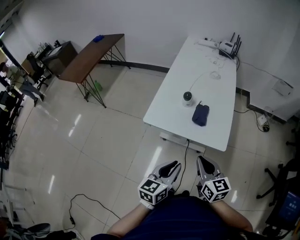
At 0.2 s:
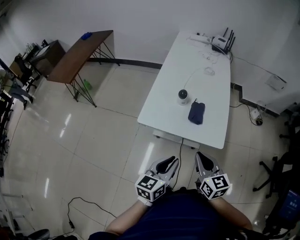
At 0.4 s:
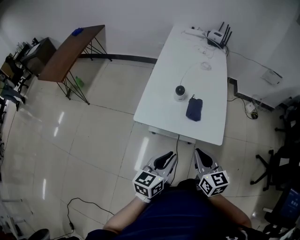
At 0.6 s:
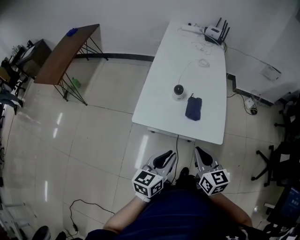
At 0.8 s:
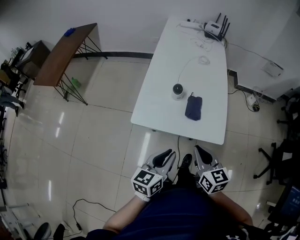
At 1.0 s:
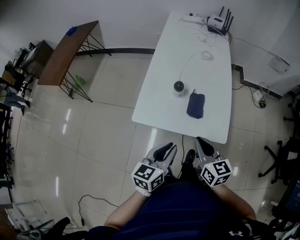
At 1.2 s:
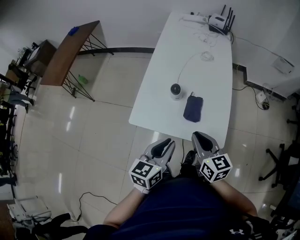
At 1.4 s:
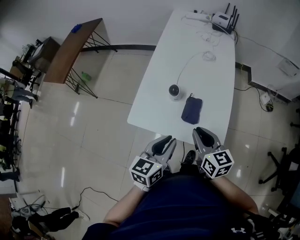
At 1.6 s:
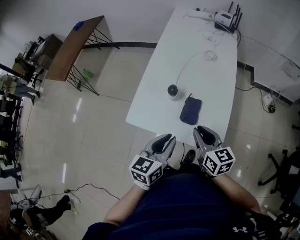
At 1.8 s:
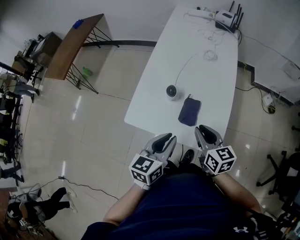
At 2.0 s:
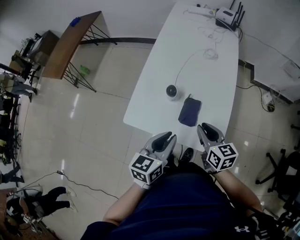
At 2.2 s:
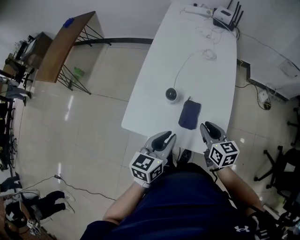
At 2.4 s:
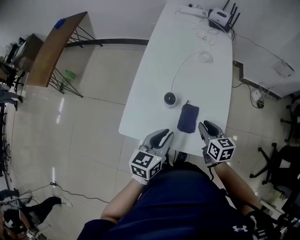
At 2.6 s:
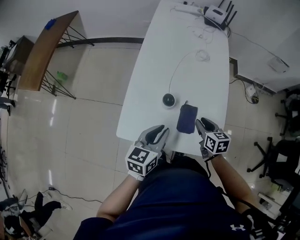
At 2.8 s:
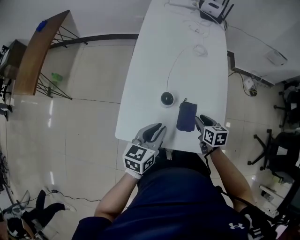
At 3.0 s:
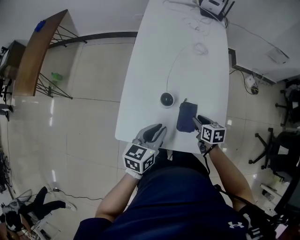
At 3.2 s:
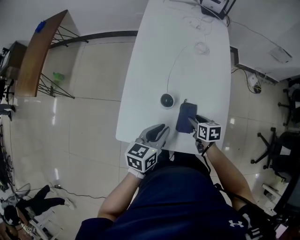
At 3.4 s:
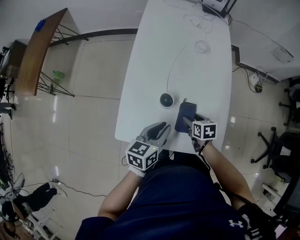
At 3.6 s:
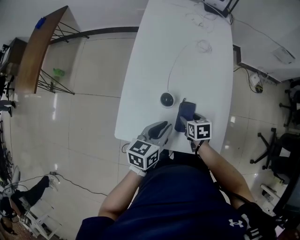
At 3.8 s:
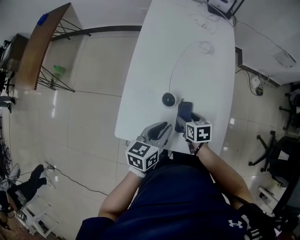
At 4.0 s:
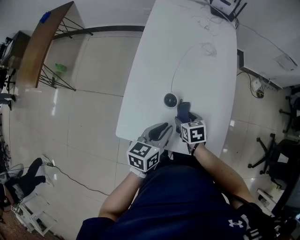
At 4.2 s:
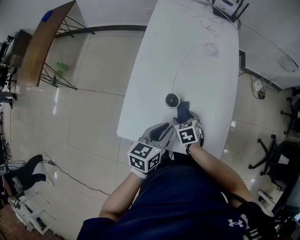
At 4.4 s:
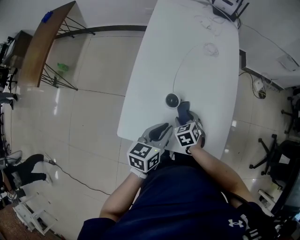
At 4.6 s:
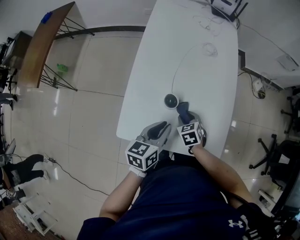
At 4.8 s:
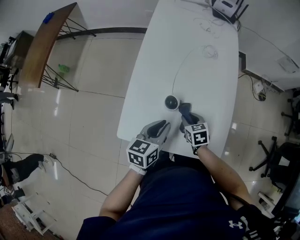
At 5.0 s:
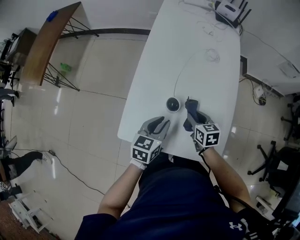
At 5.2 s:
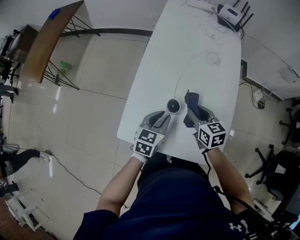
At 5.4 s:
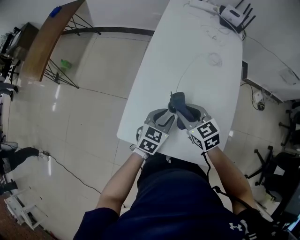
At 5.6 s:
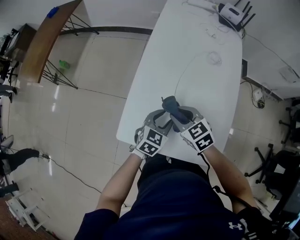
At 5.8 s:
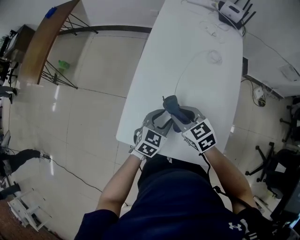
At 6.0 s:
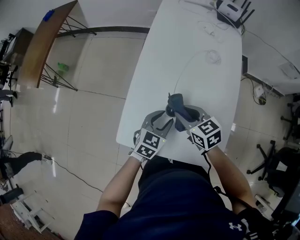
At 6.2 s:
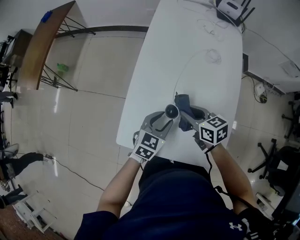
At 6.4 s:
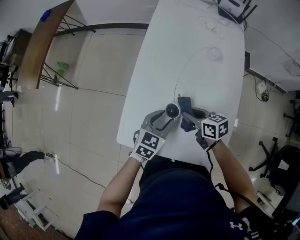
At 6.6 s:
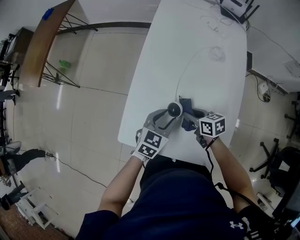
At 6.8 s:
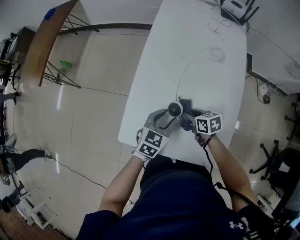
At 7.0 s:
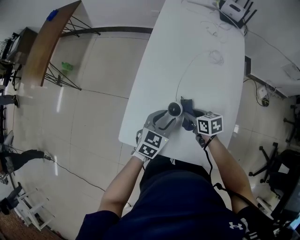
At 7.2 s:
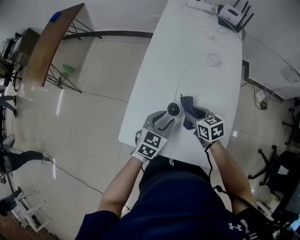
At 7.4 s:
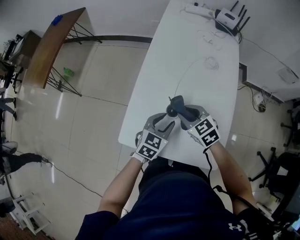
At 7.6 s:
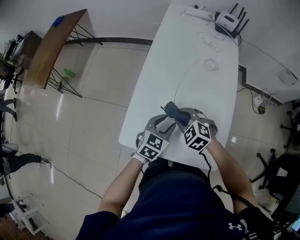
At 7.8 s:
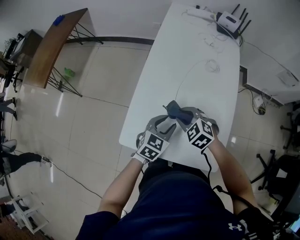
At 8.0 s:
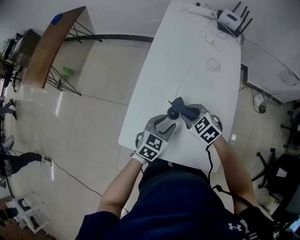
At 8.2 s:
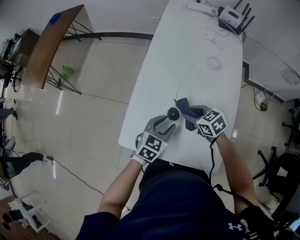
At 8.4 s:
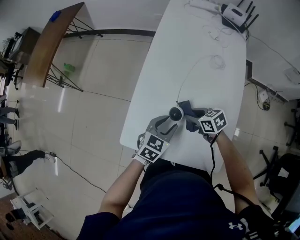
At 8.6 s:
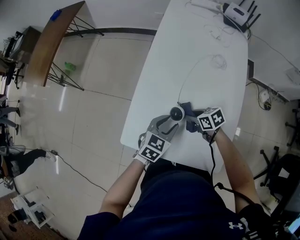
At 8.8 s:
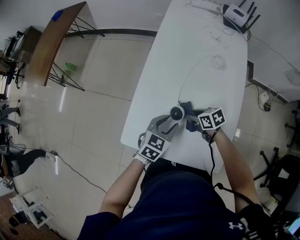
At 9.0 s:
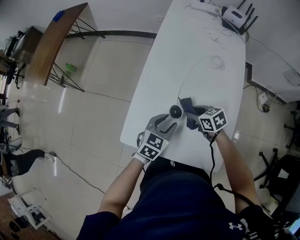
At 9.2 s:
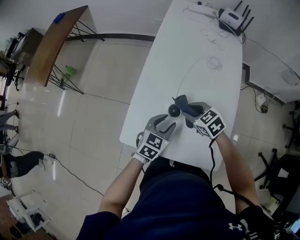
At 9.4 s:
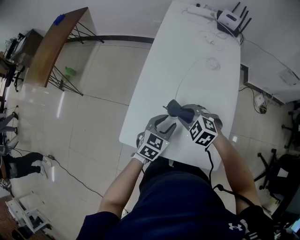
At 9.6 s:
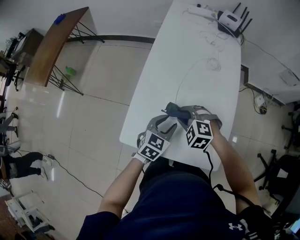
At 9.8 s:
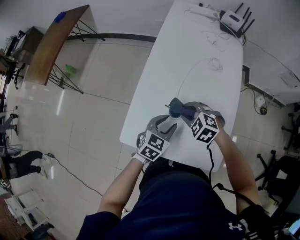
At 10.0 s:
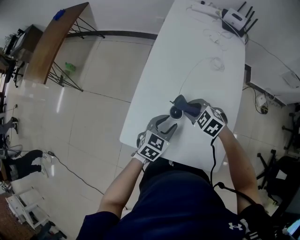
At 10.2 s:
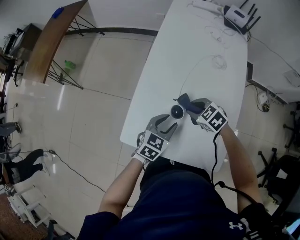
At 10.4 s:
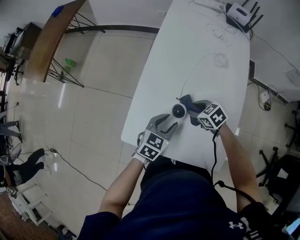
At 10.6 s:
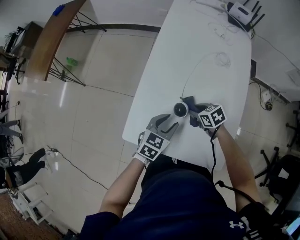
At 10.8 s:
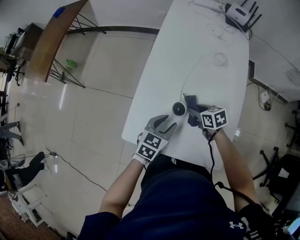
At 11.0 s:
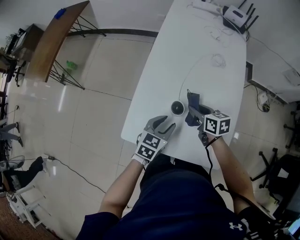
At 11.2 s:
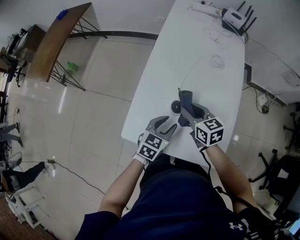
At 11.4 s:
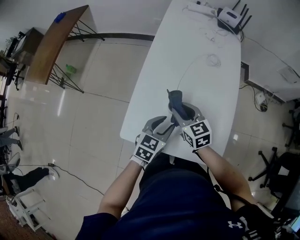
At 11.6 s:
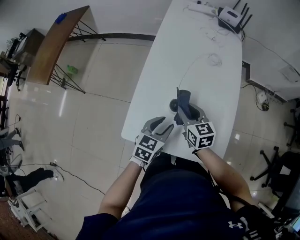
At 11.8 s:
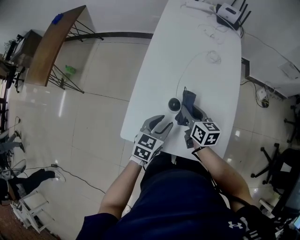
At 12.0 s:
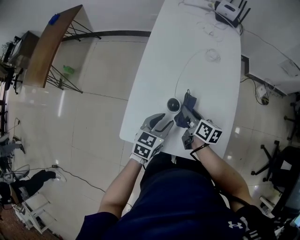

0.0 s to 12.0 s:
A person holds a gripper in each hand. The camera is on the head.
0.0 to 1.6 s: The grippers both shift forward by roughly 20 cm.
1.6 to 3.0 s: The left gripper is displaced forward, downward and to the left by some 15 cm. The right gripper moves downward and forward, about 20 cm, and tilts its fingers roughly 30 degrees downward.
3.0 to 4.4 s: The right gripper moves to the left, roughly 10 cm, rotates approximately 40 degrees, and opens up.
4.4 to 6.0 s: The right gripper moves upward and forward, roughly 15 cm, rotates approximately 40 degrees, and closes up, while the left gripper is displaced forward and downward by some 10 cm, changes its angle by approximately 30 degrees, and opens up.
6.0 to 7.6 s: The right gripper goes downward and returns, approximately 10 cm each way, and rotates around the line of its fingers by about 40 degrees, counterclockwise from behind.
7.6 to 9.0 s: The right gripper is displaced downward and to the right by about 10 cm, and rotates around the line of its fingers by approximately 50 degrees, clockwise from behind.
9.0 to 10.4 s: The right gripper moves some 5 cm upward and comes back.
10.4 to 12.0 s: The right gripper is displaced upward by approximately 5 cm, and turns by approximately 70 degrees.

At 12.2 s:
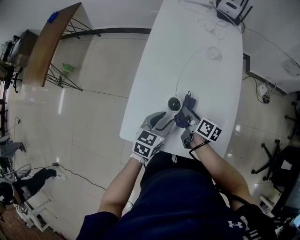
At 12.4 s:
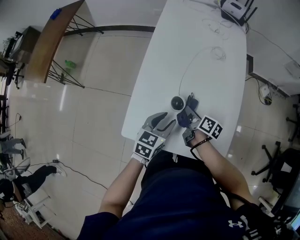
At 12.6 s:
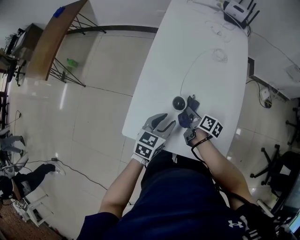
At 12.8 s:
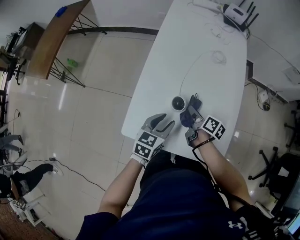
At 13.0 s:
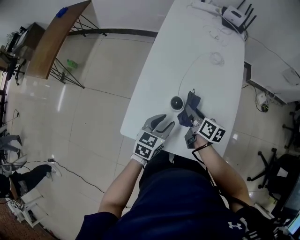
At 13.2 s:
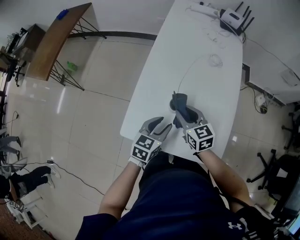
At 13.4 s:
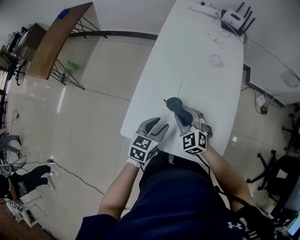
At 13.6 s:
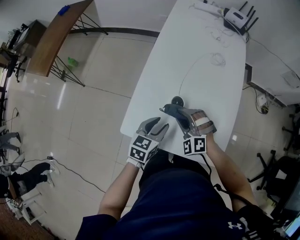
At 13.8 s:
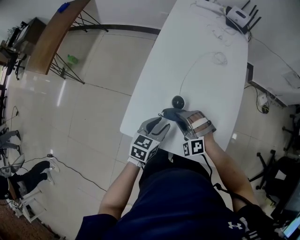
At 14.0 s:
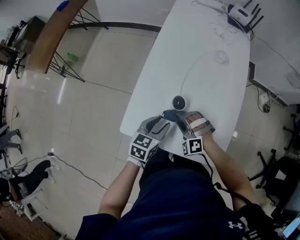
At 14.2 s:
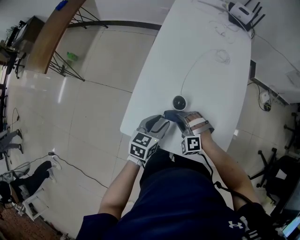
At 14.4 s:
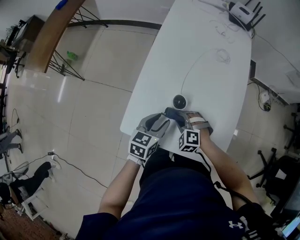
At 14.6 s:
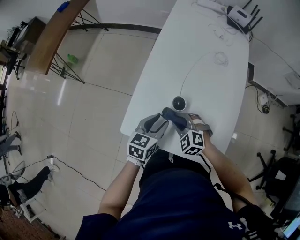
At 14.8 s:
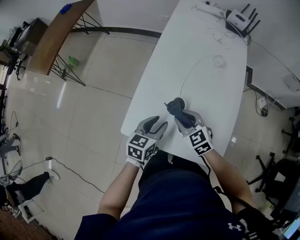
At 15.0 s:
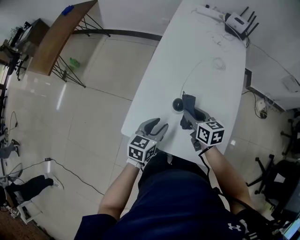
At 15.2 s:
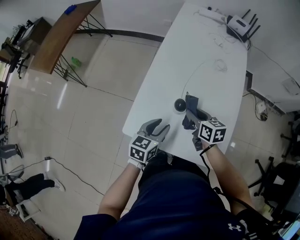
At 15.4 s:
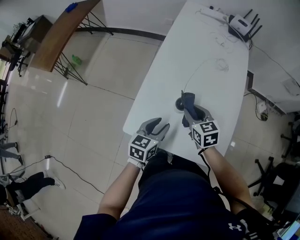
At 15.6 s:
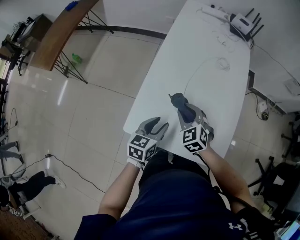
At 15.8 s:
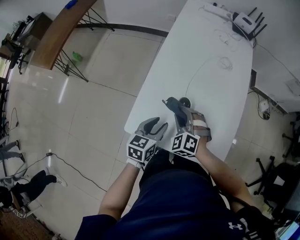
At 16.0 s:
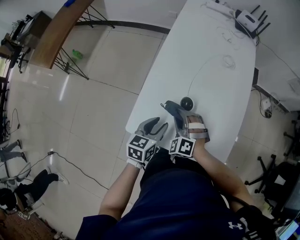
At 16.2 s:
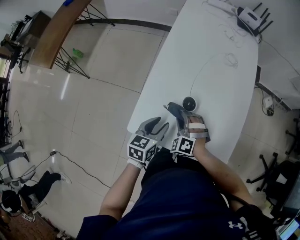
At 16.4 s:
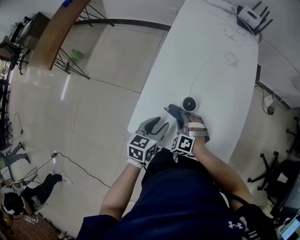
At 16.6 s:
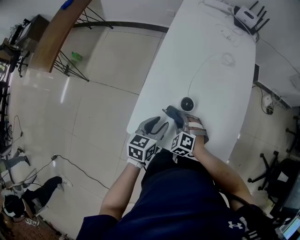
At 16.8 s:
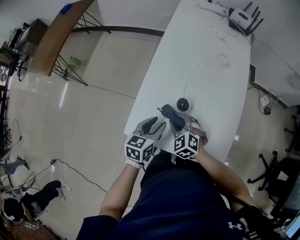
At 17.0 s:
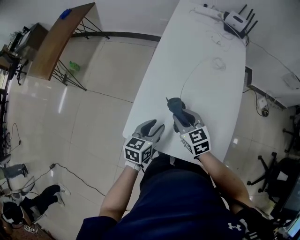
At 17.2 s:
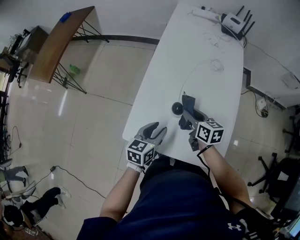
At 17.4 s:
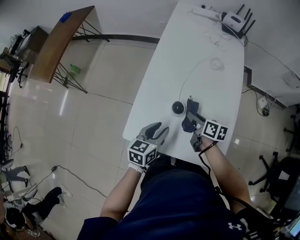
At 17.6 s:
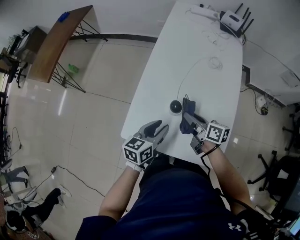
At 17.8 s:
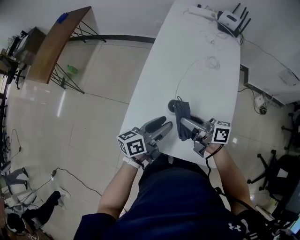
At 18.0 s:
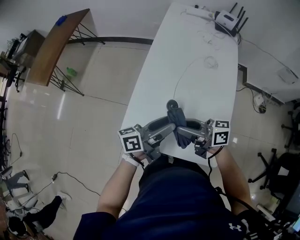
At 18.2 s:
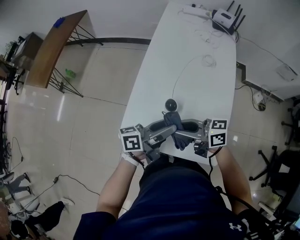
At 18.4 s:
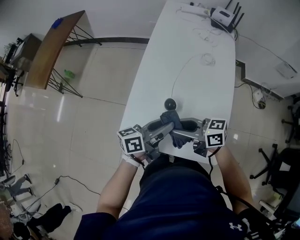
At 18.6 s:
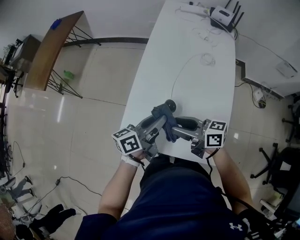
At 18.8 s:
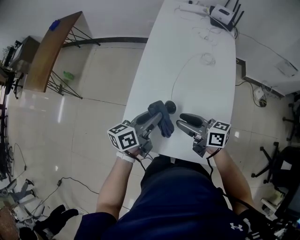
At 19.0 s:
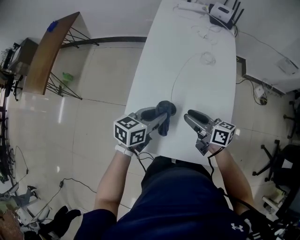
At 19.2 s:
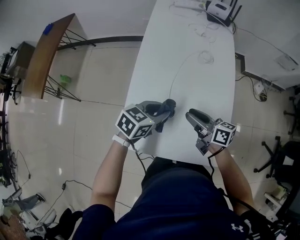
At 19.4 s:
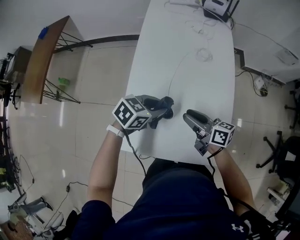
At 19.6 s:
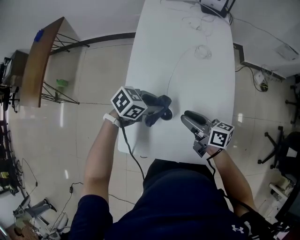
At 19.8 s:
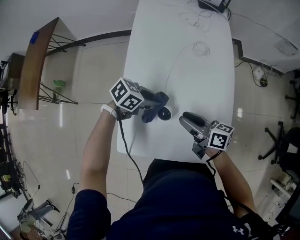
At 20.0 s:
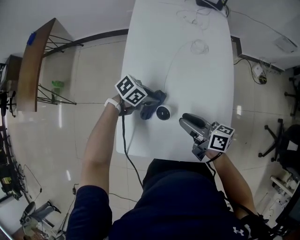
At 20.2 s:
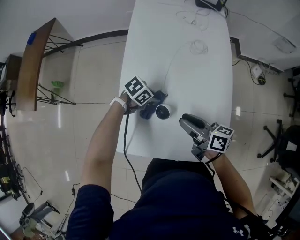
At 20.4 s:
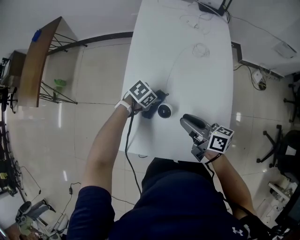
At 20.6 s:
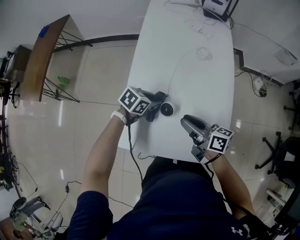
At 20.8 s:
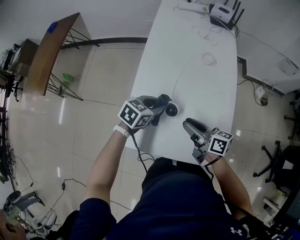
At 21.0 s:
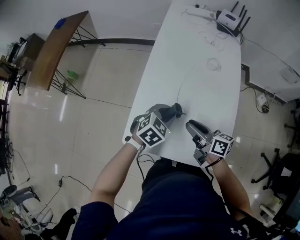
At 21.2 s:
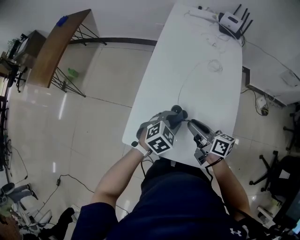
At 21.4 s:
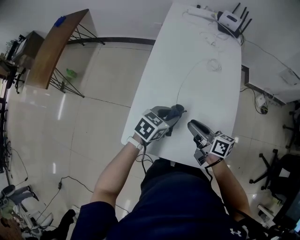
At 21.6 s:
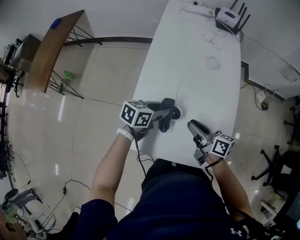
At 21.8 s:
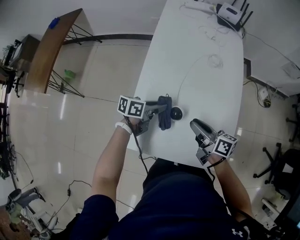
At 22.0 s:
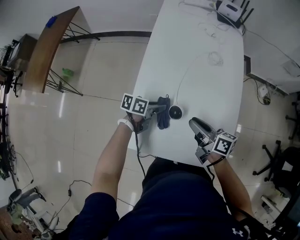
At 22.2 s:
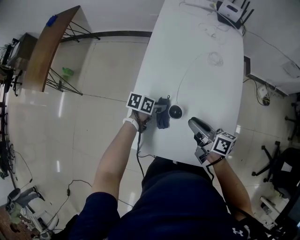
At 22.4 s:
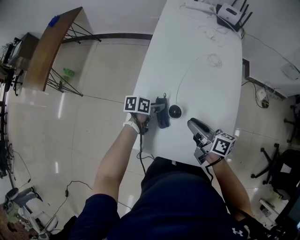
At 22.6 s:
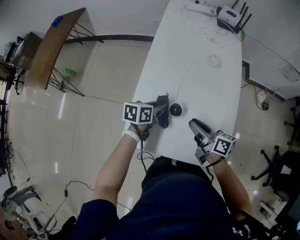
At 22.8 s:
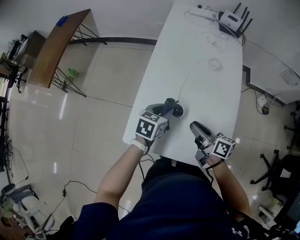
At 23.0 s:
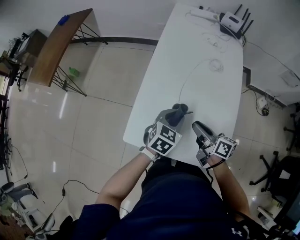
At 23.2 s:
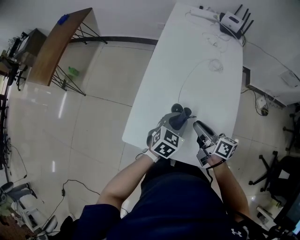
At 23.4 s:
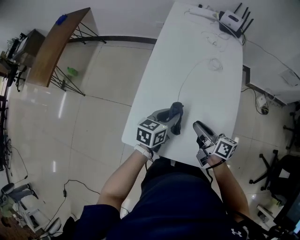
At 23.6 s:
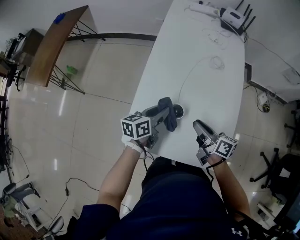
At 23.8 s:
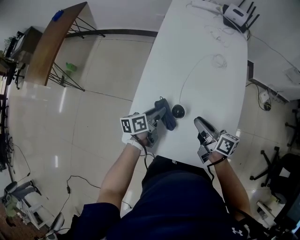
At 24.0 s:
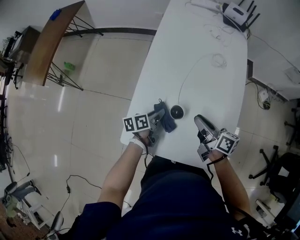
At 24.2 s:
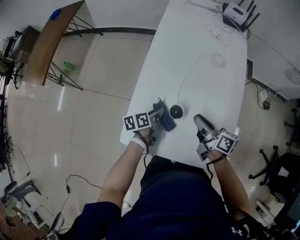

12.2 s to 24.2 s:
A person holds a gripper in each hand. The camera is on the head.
12.2 to 13.8 s: The right gripper goes up and down, roughly 15 cm each way, reversing 2 times, and rotates around the line of its fingers by approximately 130 degrees, counterclockwise from behind.
13.8 to 15.2 s: The right gripper shifts approximately 10 cm to the right and forward, goes downward and returns, about 5 cm each way, and twists about 100 degrees clockwise, seen from behind.
15.2 to 16.6 s: The right gripper goes approximately 15 cm to the left, downward and backward, and rolls counterclockwise, seen from behind, by approximately 70 degrees.
16.6 to 18.2 s: The right gripper moves up and down over roughly 20 cm, changing direction 2 times, and tilts its fingers some 50 degrees upward. Meanwhile the left gripper travels upward by roughly 15 cm, and tips its fingers upward by about 40 degrees.
18.2 to 19.8 s: The right gripper changes place by some 15 cm, and changes its angle by about 40 degrees; the left gripper travels downward by about 15 cm, angles its fingers downward, by about 40 degrees, and closes its fingers.
19.8 to 21.2 s: The left gripper travels downward and back again, about 10 cm each way, and changes its angle by about 40 degrees.
21.2 to 22.6 s: The left gripper shifts approximately 10 cm to the left, goes downward and returns, roughly 10 cm each way, and rotates around the line of its fingers by roughly 50 degrees, counterclockwise from behind.
22.6 to 24.2 s: The left gripper travels downward by roughly 5 cm, and rotates approximately 30 degrees.
